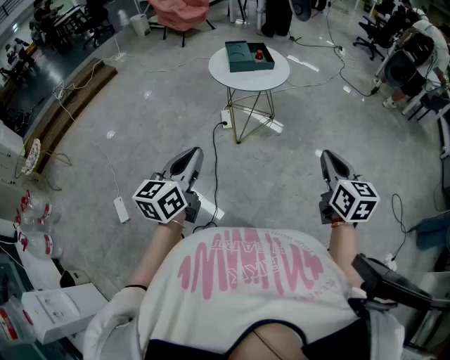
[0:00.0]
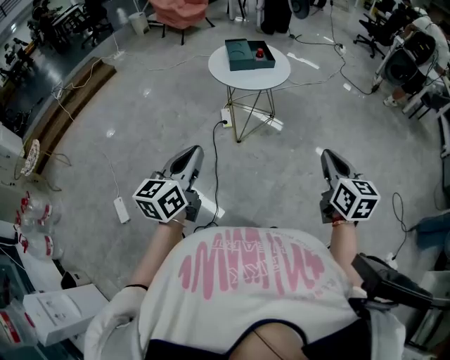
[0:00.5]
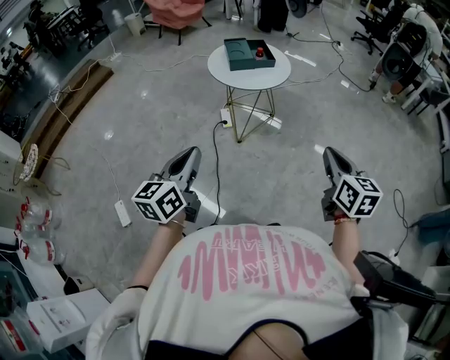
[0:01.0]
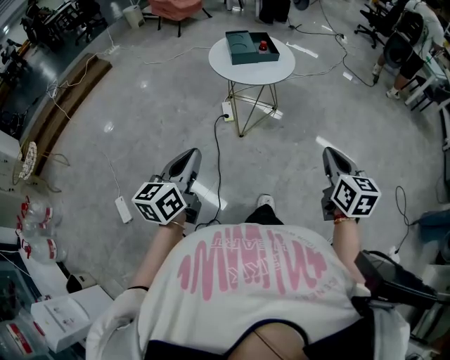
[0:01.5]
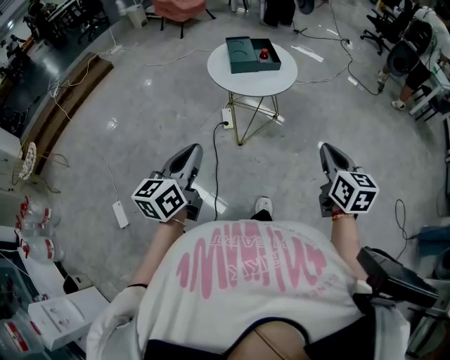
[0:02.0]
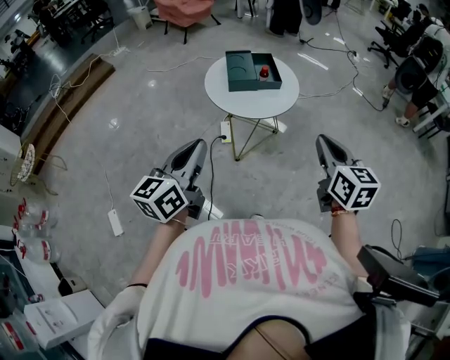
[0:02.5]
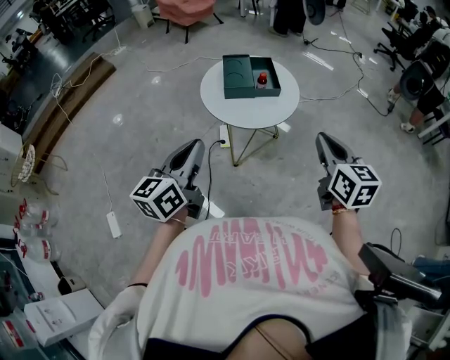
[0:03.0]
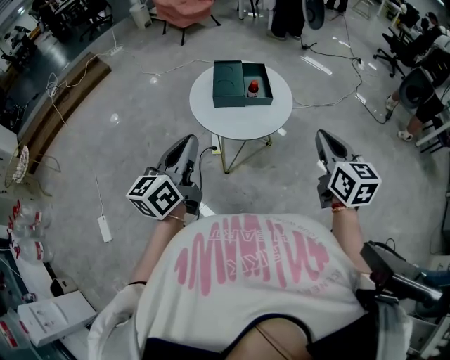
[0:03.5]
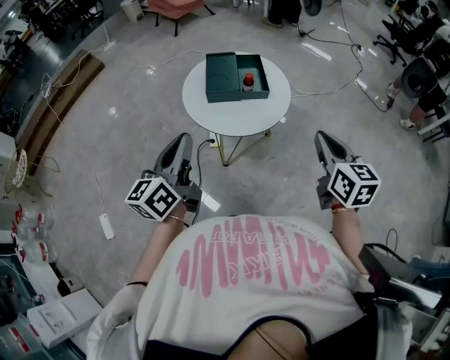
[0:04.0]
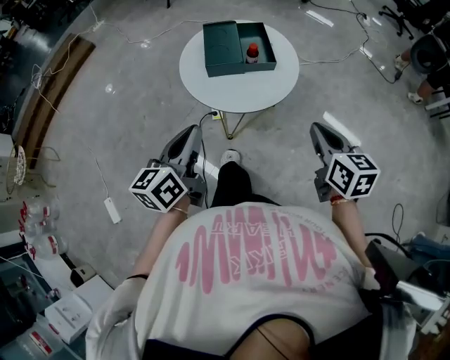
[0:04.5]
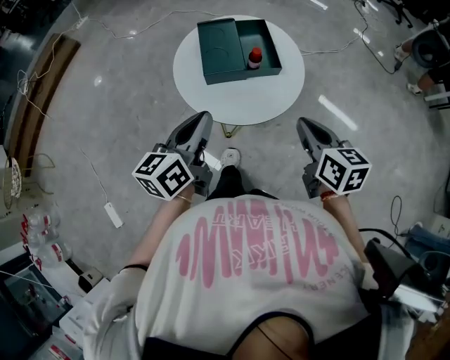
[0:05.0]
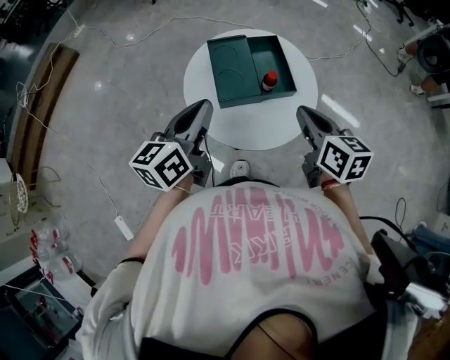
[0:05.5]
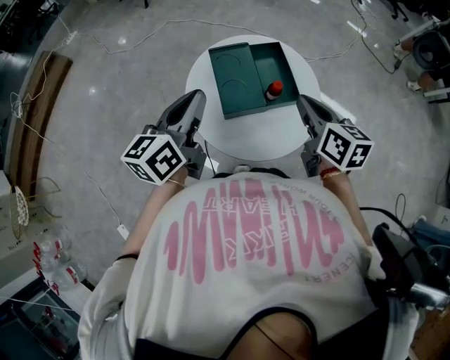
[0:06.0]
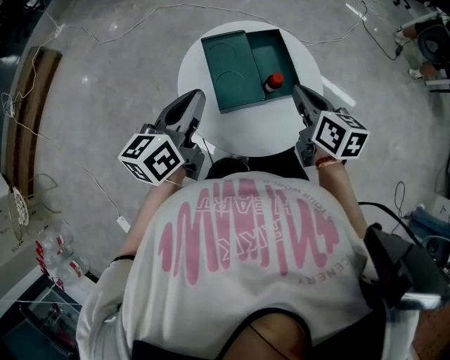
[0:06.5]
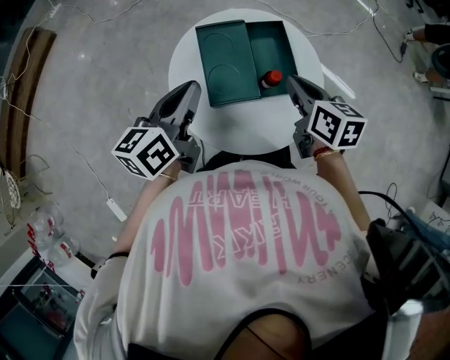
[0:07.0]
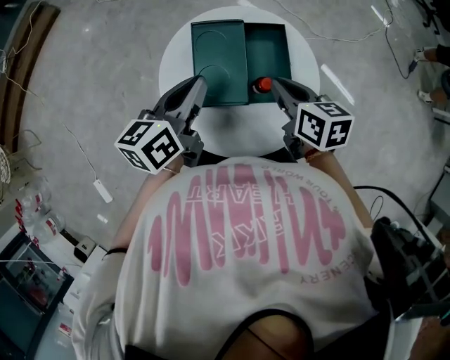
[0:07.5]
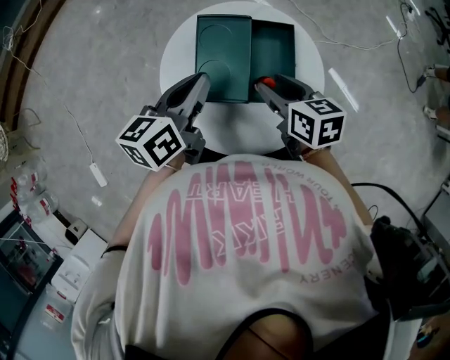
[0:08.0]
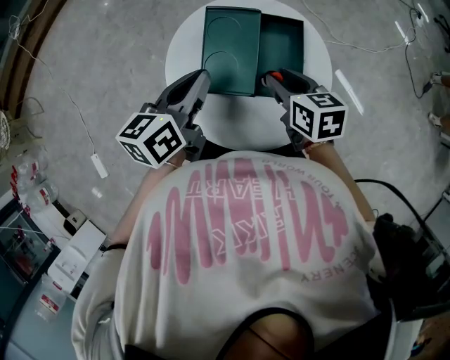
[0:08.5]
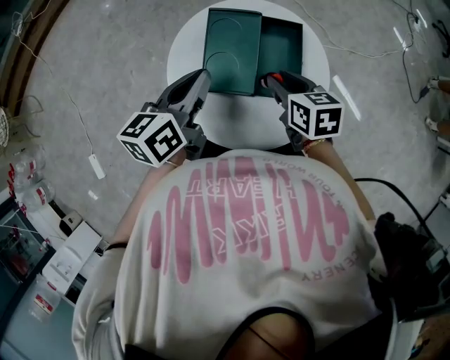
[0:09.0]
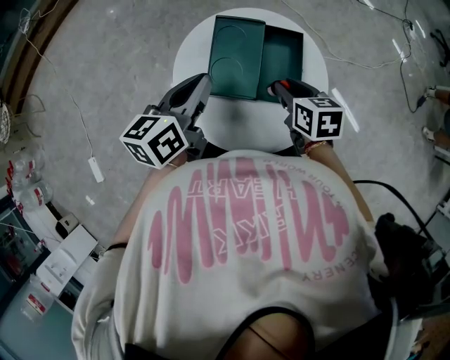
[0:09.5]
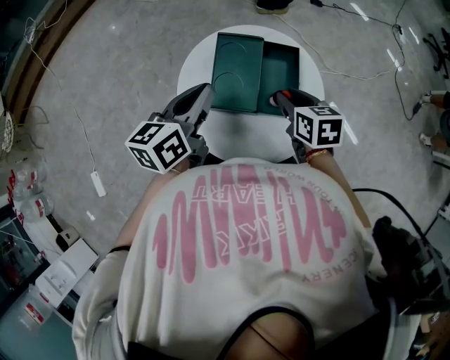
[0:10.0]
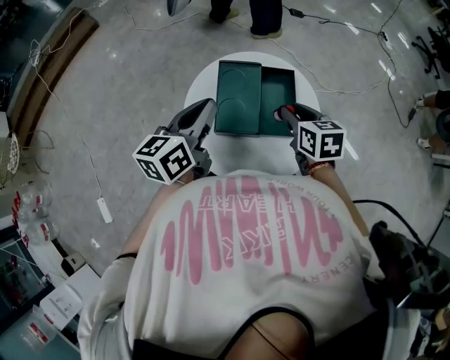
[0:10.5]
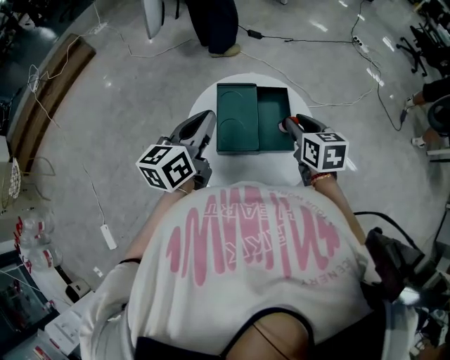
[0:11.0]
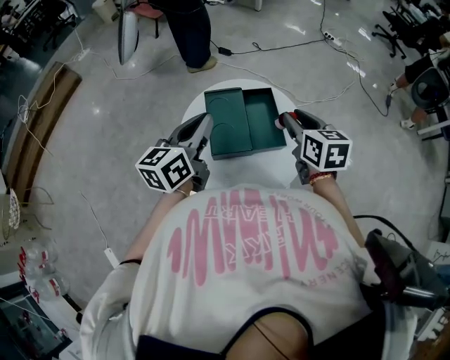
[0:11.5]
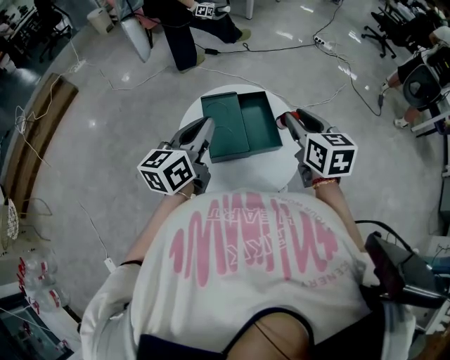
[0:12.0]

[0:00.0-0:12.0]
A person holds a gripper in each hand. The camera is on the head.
0:00.0 to 0:02.0: The two grippers go approximately 15 cm forward.
0:02.0 to 0:04.0: Both grippers move forward, about 30 cm.
0:04.0 to 0:06.0: The right gripper goes roughly 35 cm forward and to the left; the left gripper moves forward, roughly 35 cm.
0:06.0 to 0:08.0: The left gripper shifts roughly 15 cm downward, to the right and forward, while the right gripper travels downward and forward by roughly 15 cm, turns by roughly 30 degrees, and opens.
0:08.0 to 0:10.0: The left gripper moves roughly 5 cm.
0:10.0 to 0:12.0: The left gripper heads upward, covering approximately 5 cm, and changes its angle by some 20 degrees. The right gripper travels upward by approximately 15 cm, and turns by about 30 degrees.

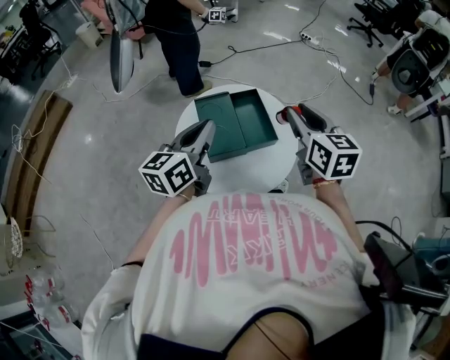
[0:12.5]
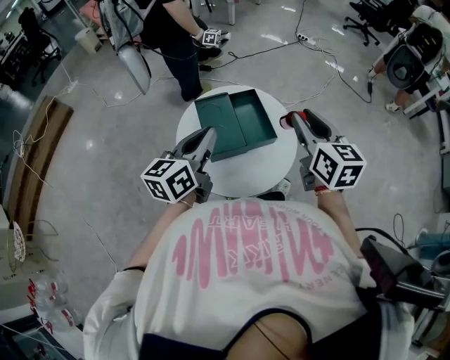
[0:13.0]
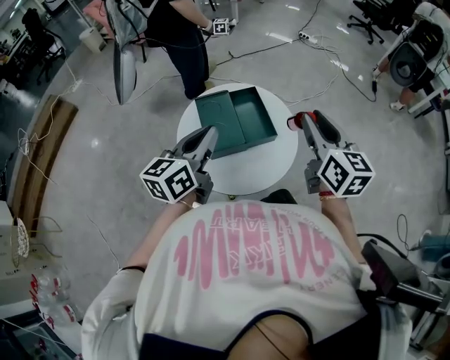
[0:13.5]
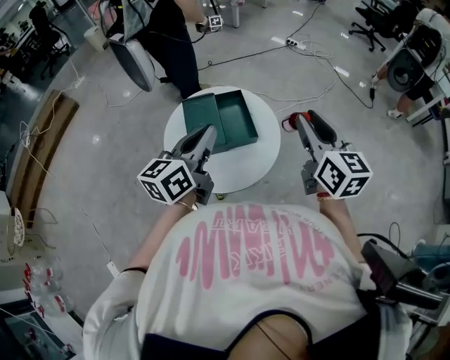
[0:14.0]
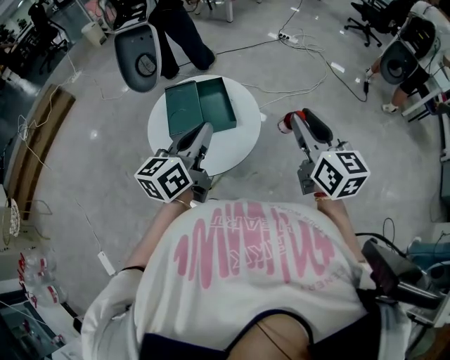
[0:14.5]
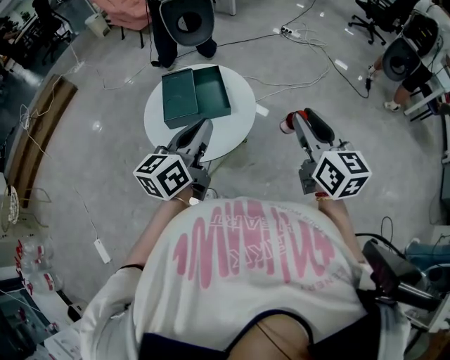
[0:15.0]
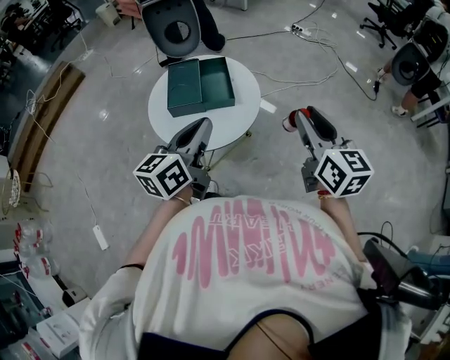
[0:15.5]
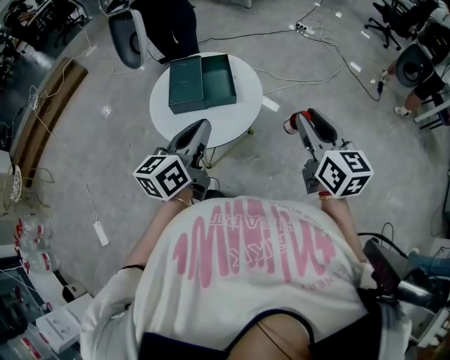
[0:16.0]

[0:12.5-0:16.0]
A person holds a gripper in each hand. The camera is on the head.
0:12.5 to 0:14.5: Both grippers travel together to the right and backward, roughly 20 cm.
0:14.5 to 0:16.0: The left gripper goes about 10 cm backward, while the right gripper heads backward, covering roughly 5 cm.

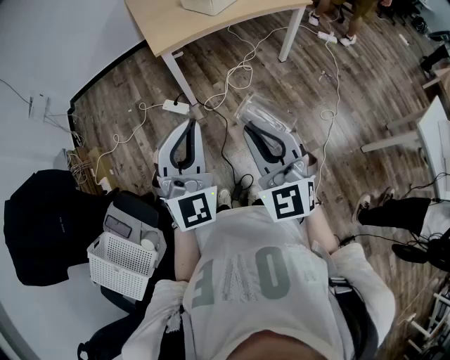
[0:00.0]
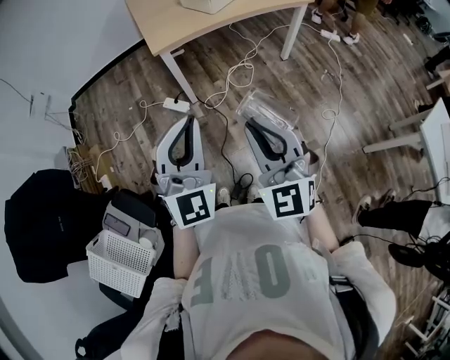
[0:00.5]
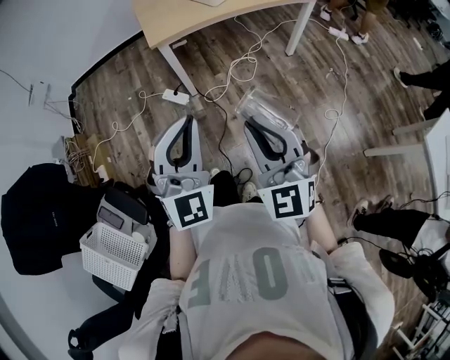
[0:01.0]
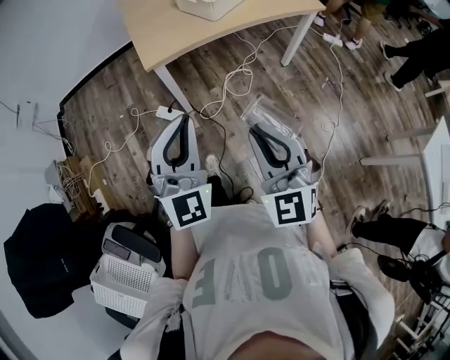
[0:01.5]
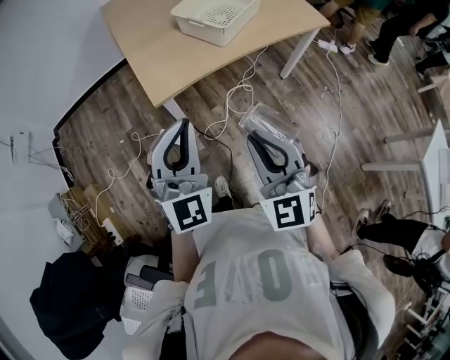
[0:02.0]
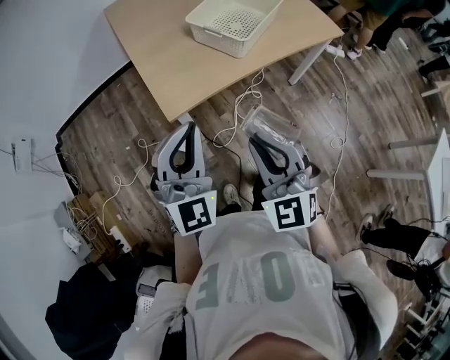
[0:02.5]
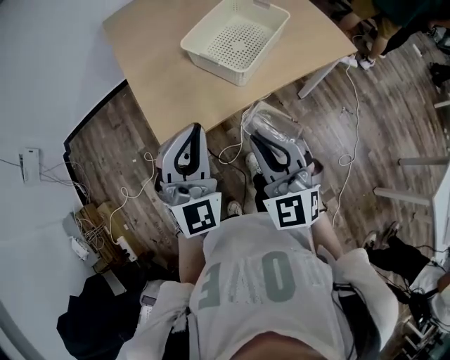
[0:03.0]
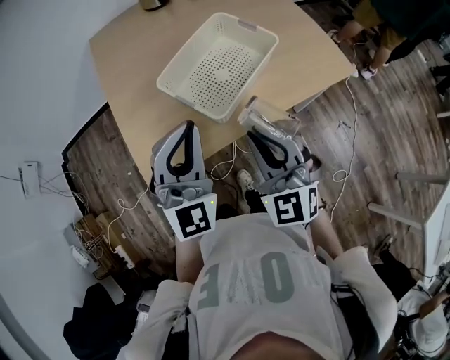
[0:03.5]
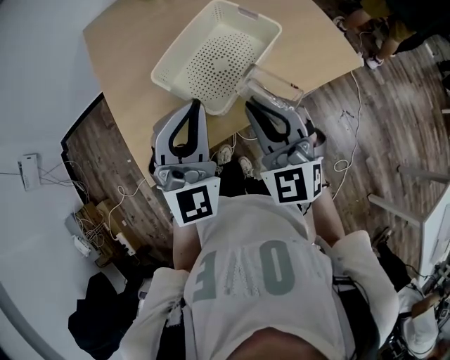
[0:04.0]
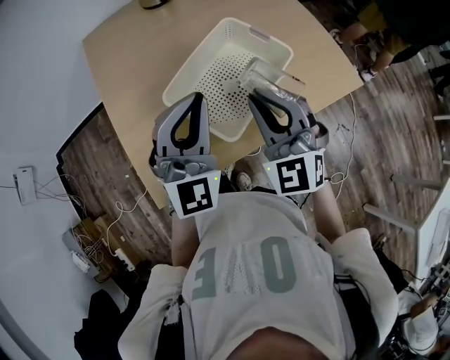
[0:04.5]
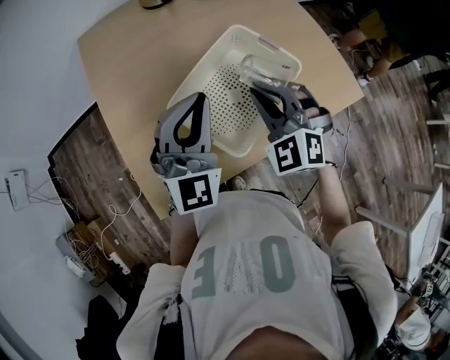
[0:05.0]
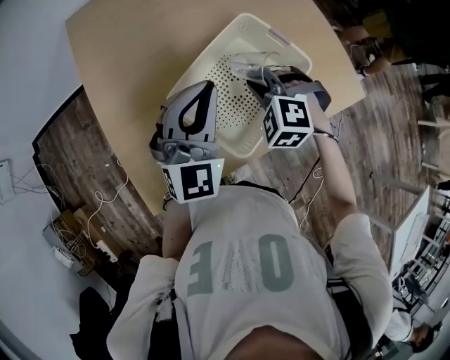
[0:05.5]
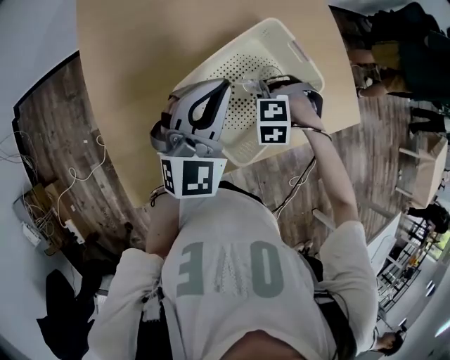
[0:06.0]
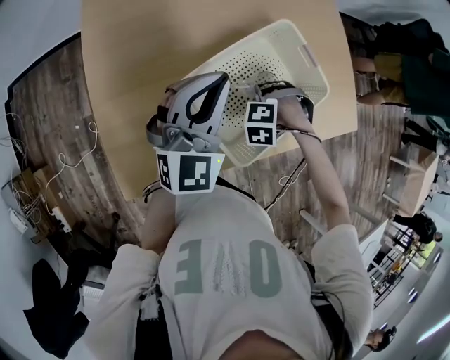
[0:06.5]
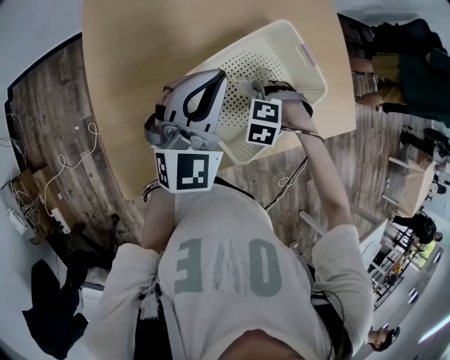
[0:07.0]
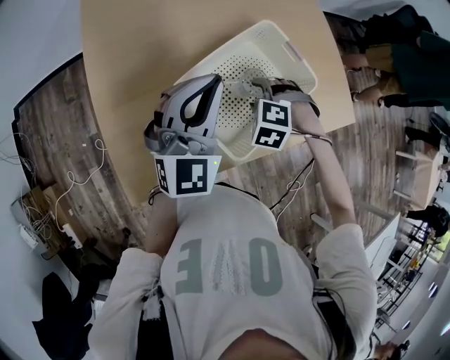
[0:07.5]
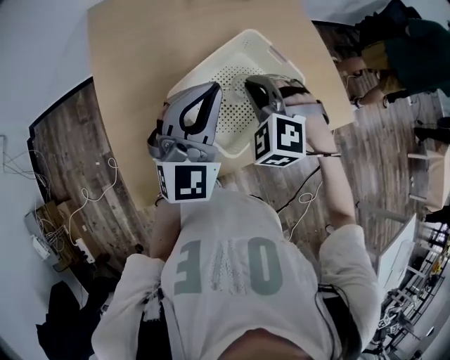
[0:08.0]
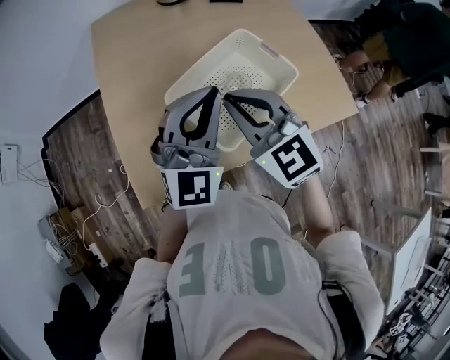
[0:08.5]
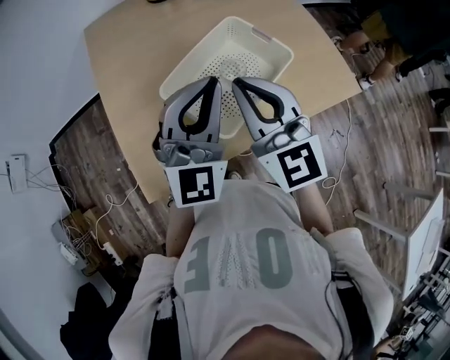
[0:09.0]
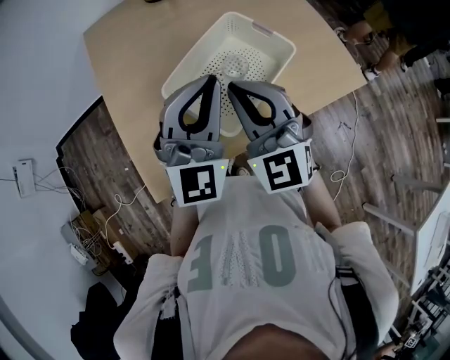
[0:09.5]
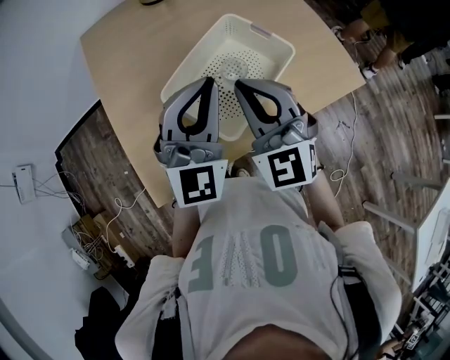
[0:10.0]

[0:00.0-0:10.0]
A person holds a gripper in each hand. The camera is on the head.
0:00.0 to 0:02.0: Both grippers travel together forward, some 30 cm.
0:02.0 to 0:04.0: Both grippers are carried forward, roughly 40 cm.
0:04.0 to 0:06.0: The left gripper ends up approximately 20 cm from where it was, while the right gripper shifts some 25 cm downward, and angles its fingers downward, by some 60 degrees.
0:06.0 to 0:08.0: The left gripper moves upward, approximately 5 cm; the right gripper goes approximately 20 cm upward, points its fingers some 30 degrees further upward, and opens, then closes once more.
0:08.0 to 0:10.0: The left gripper shifts by roughly 5 cm. Meanwhile the right gripper shifts about 10 cm upward and backward, and angles its fingers upward, by some 30 degrees.

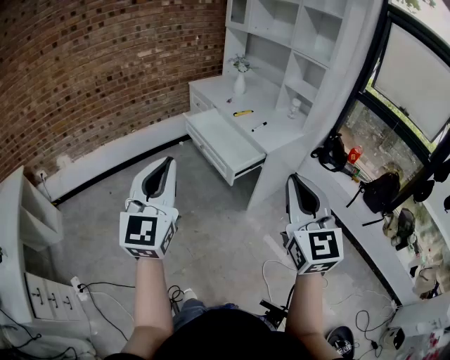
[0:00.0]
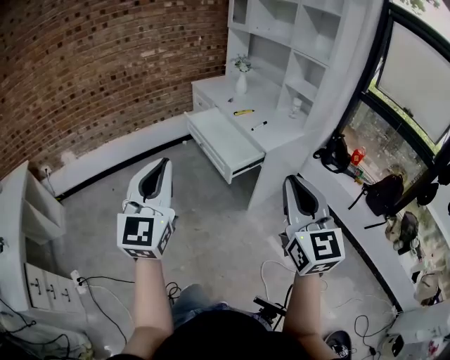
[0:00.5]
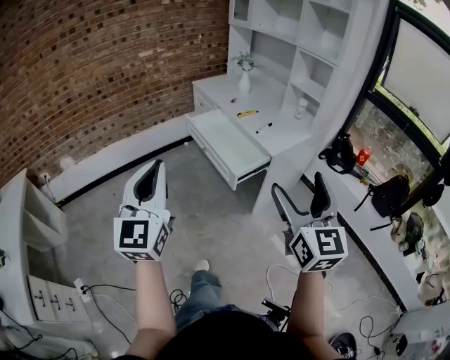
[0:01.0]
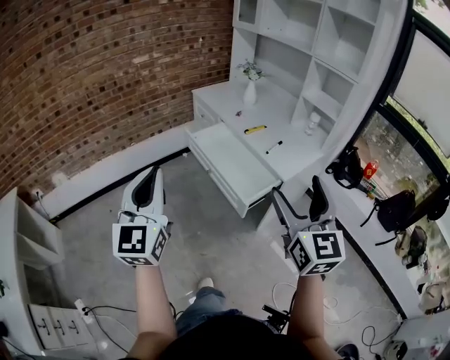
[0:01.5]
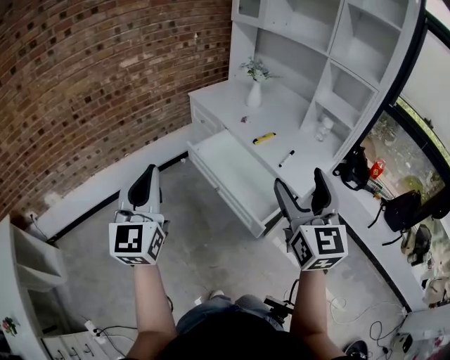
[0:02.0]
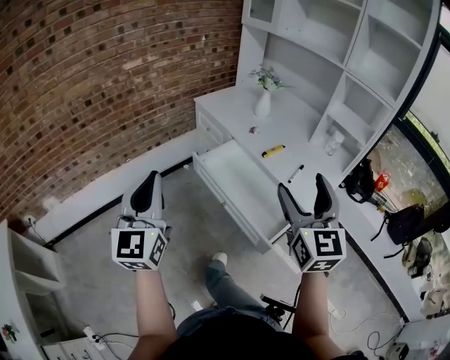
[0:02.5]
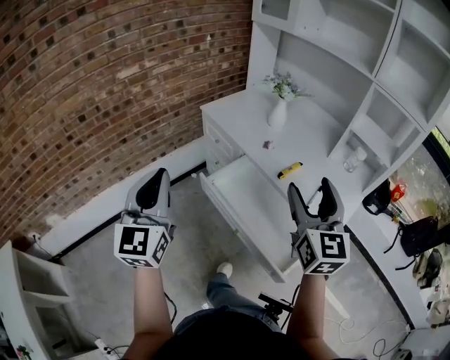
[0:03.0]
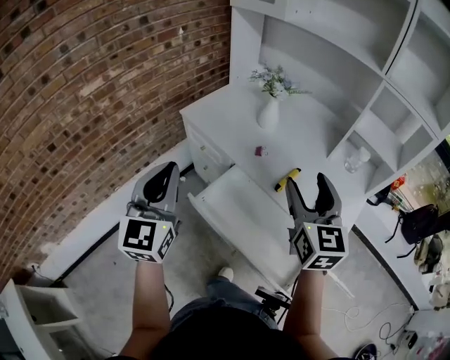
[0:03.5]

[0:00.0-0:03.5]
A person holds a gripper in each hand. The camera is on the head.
0:00.0 to 0:02.0: Both grippers move forward, approximately 35 cm. The right gripper opens its fingers.
0:02.0 to 0:03.5: The two grippers go some 40 cm forward.
